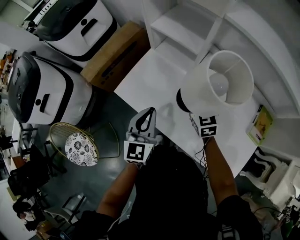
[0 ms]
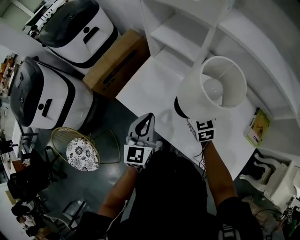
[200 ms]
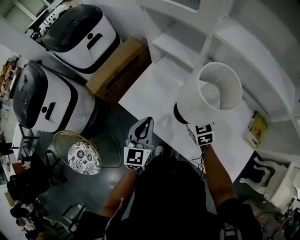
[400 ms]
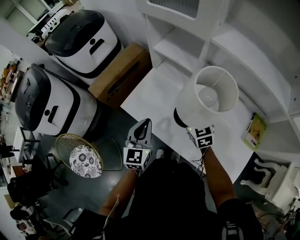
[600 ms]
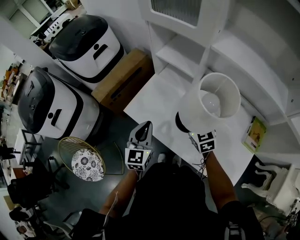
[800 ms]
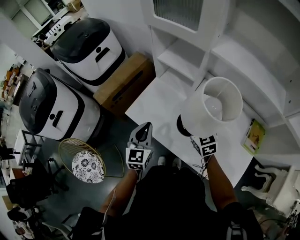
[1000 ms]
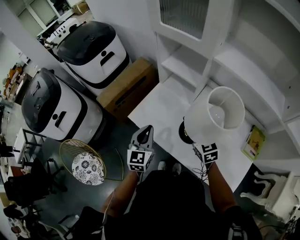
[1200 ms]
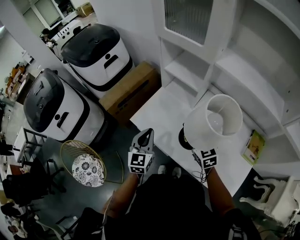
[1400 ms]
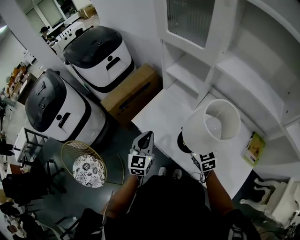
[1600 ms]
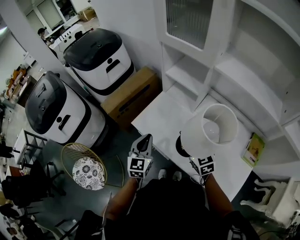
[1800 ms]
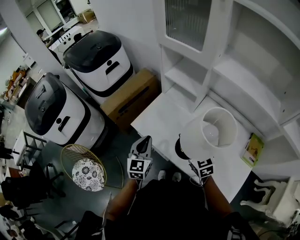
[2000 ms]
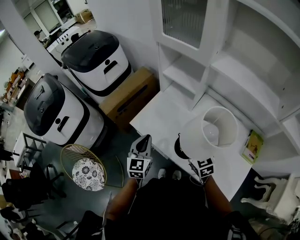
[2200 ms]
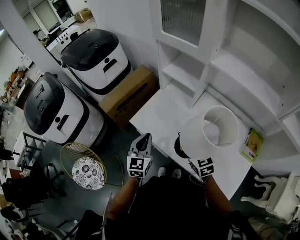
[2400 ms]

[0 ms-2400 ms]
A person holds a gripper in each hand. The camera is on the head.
0 ms to 1200 ms: The left gripper is displaced to the left by some 5 cm, while the right gripper heads upward and backward, covering roughly 10 cm.
1200 ms to 2400 ms: The right gripper travels backward by about 5 cm.

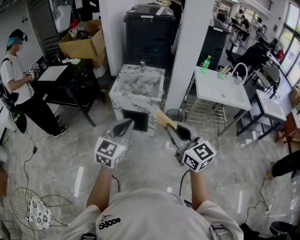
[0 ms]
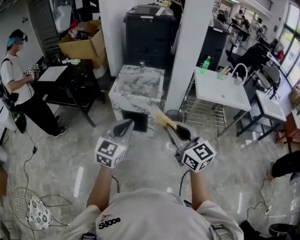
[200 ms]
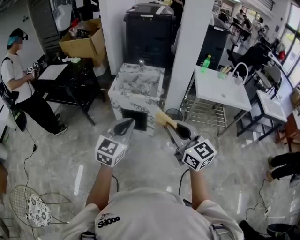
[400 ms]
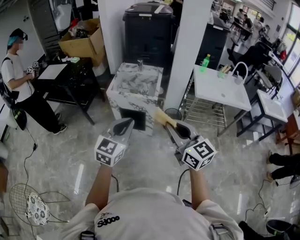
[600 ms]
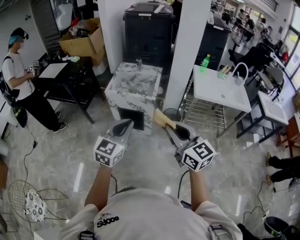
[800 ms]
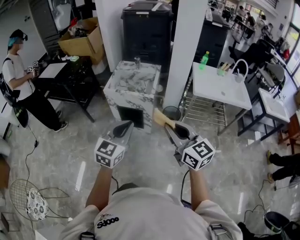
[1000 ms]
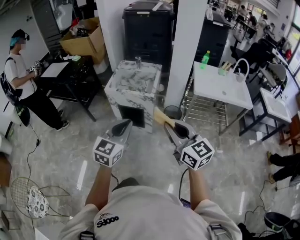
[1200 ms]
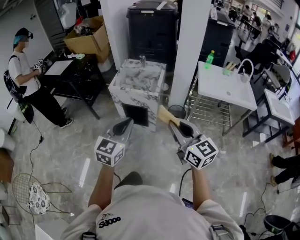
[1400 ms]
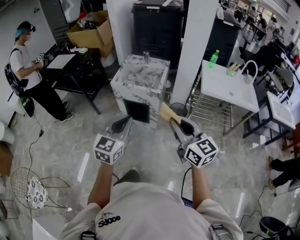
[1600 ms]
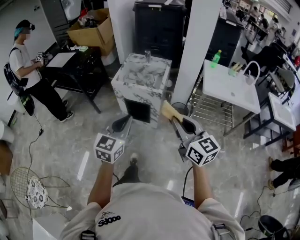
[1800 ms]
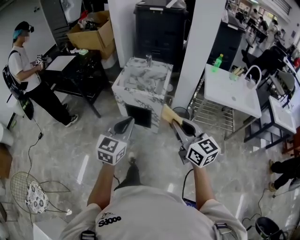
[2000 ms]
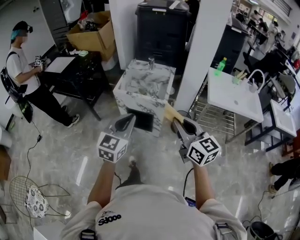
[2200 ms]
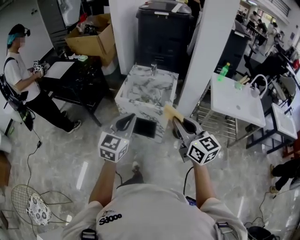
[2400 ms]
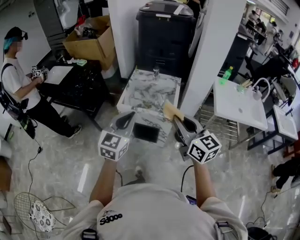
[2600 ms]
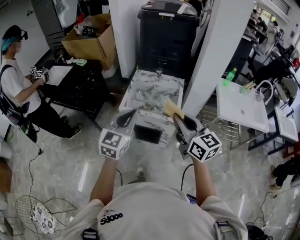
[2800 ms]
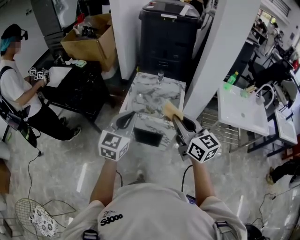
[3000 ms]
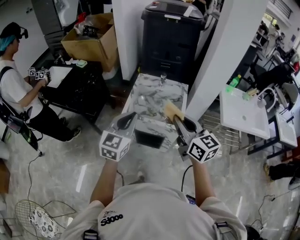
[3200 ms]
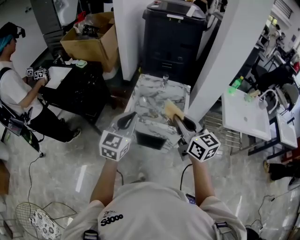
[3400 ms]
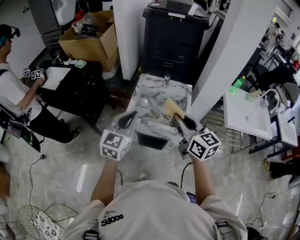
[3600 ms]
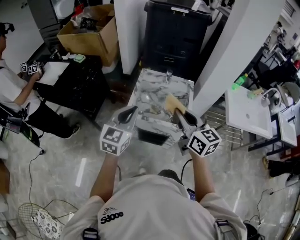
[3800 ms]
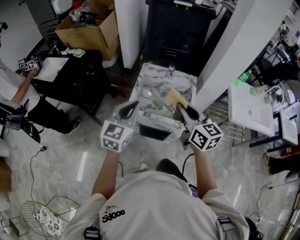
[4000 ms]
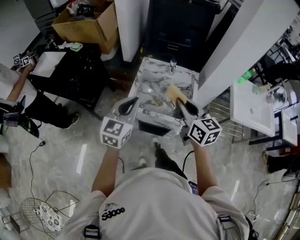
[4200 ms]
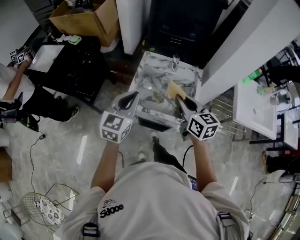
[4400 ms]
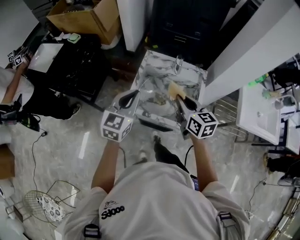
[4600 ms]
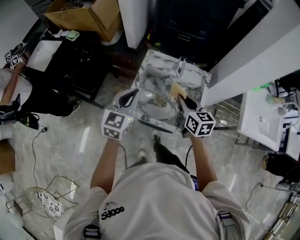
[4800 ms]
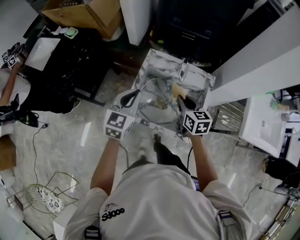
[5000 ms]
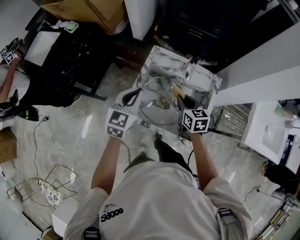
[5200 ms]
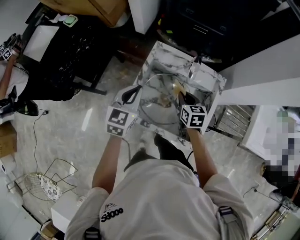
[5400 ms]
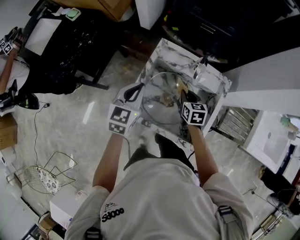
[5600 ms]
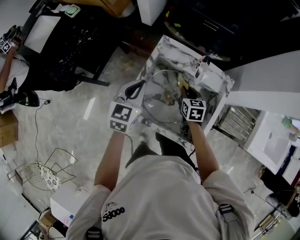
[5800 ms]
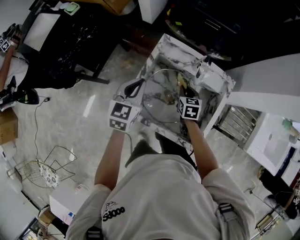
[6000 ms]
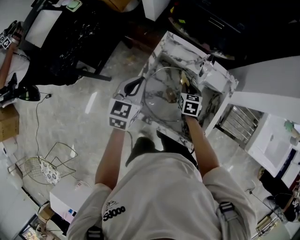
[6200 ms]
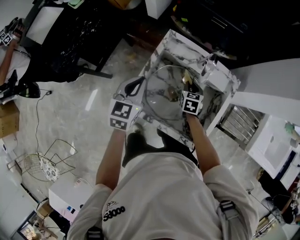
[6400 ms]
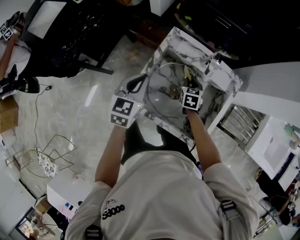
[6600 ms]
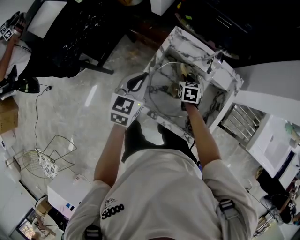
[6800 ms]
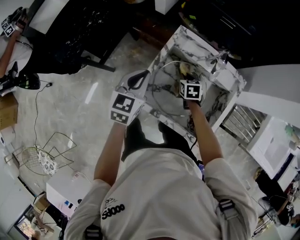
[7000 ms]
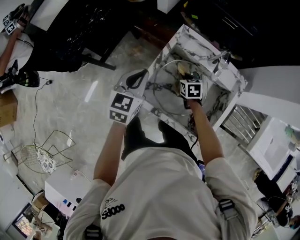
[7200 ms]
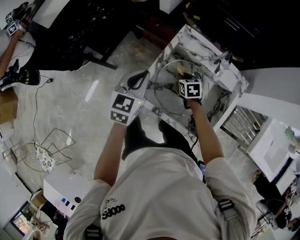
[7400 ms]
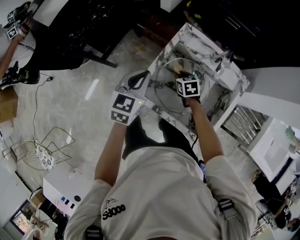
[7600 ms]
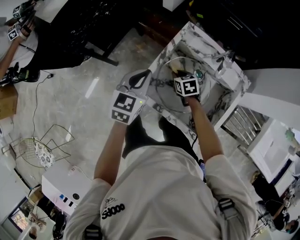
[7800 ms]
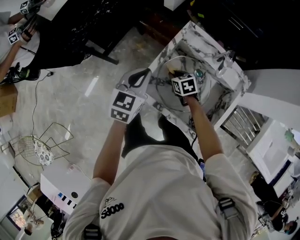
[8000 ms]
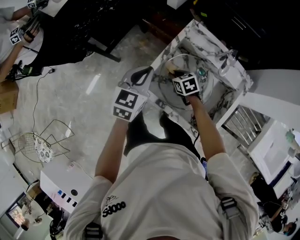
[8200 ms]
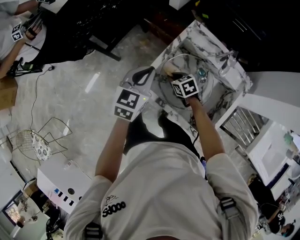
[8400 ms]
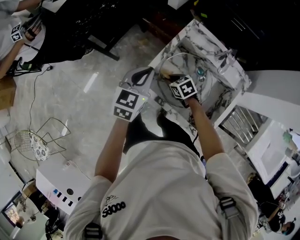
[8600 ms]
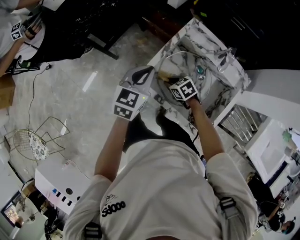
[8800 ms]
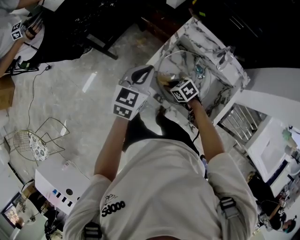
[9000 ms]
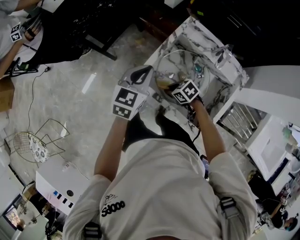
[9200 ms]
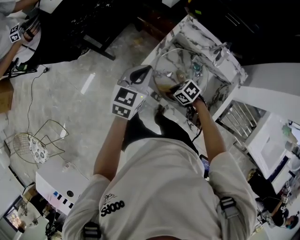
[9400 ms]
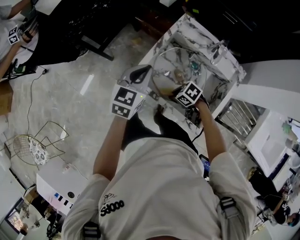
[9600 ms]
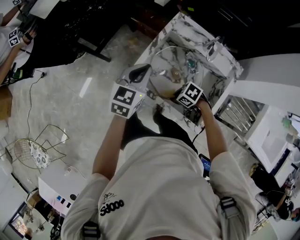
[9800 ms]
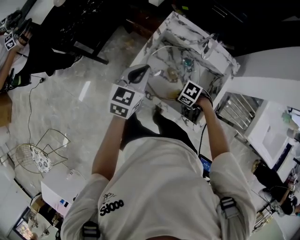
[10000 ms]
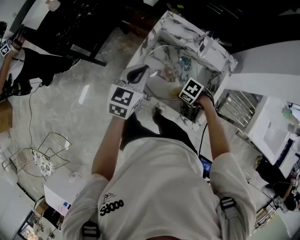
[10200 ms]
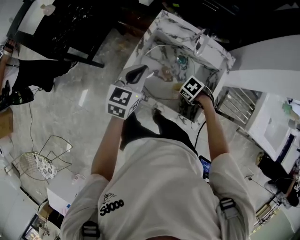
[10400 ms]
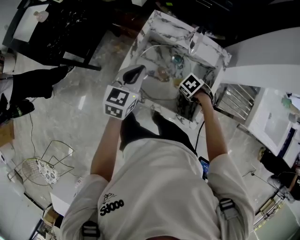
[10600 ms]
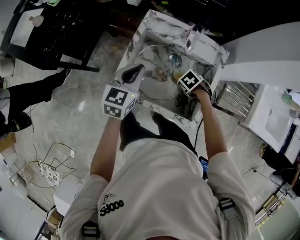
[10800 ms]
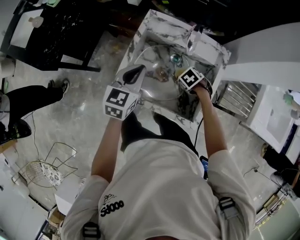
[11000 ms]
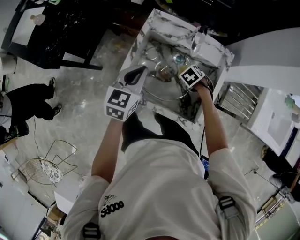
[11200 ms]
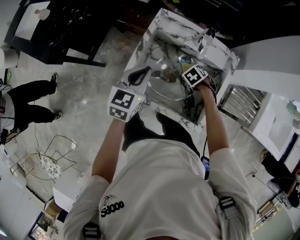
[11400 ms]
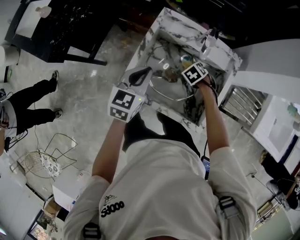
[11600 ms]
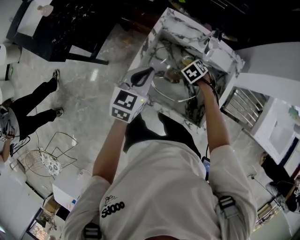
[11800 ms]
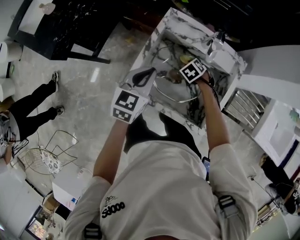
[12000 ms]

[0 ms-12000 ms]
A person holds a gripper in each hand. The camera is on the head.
0 ms to 1600 ms: Both grippers move to the right, roughly 10 cm.
1600 ms to 3000 ms: Both grippers move forward, approximately 30 cm.
3000 ms to 4400 ms: Both grippers move forward and downward, about 20 cm.
4400 ms to 6000 ms: The left gripper heads forward and downward, covering roughly 25 cm, and rotates approximately 20 degrees. The right gripper goes about 40 cm downward and forward, and tips its fingers downward by some 30 degrees.
6000 ms to 7600 ms: The right gripper goes some 10 cm to the left, and rotates about 20 degrees. Meanwhile the left gripper moves about 5 cm.
7600 ms to 9000 ms: The right gripper moves some 15 cm, and swivels approximately 30 degrees.
9000 ms to 10400 ms: The left gripper changes place by roughly 5 cm. The right gripper ends up some 15 cm from where it was, and rotates roughly 30 degrees.
10400 ms to 12000 ms: The right gripper changes place by some 15 cm, and turns by roughly 20 degrees.

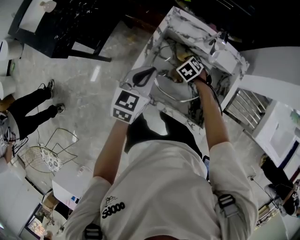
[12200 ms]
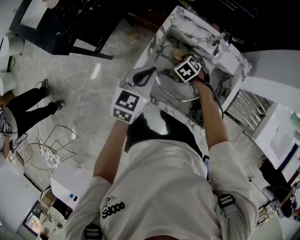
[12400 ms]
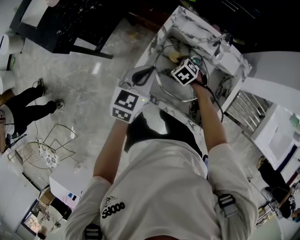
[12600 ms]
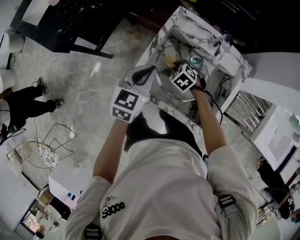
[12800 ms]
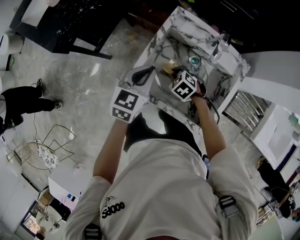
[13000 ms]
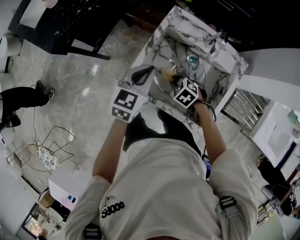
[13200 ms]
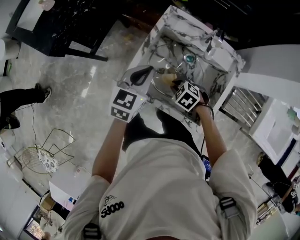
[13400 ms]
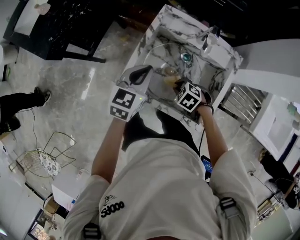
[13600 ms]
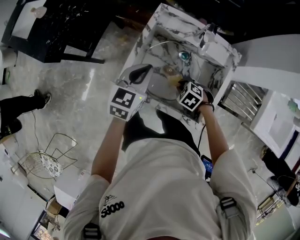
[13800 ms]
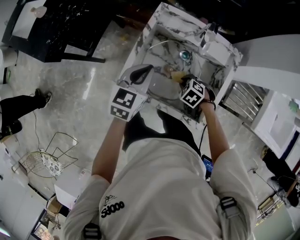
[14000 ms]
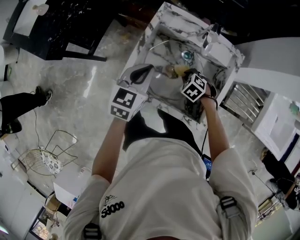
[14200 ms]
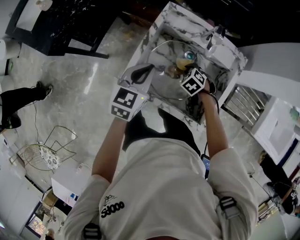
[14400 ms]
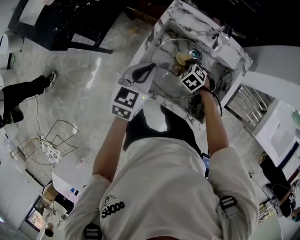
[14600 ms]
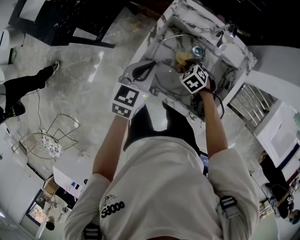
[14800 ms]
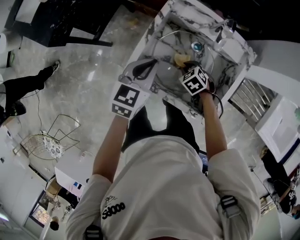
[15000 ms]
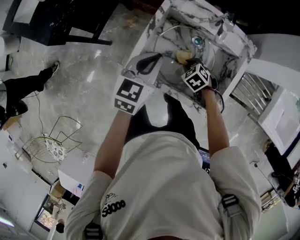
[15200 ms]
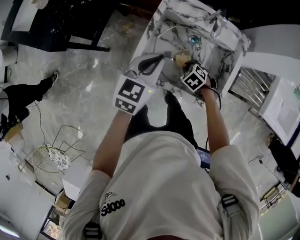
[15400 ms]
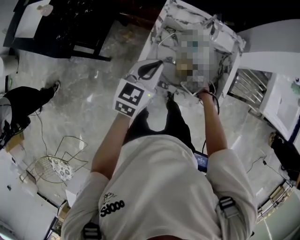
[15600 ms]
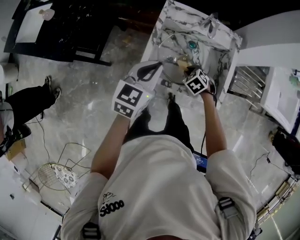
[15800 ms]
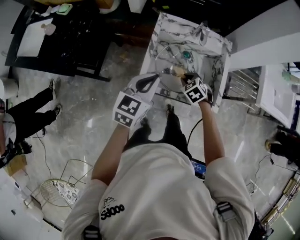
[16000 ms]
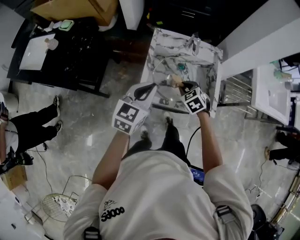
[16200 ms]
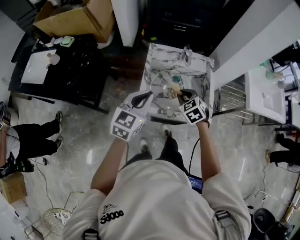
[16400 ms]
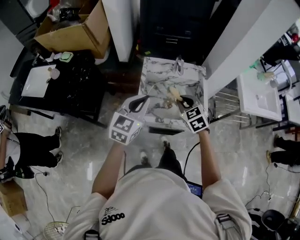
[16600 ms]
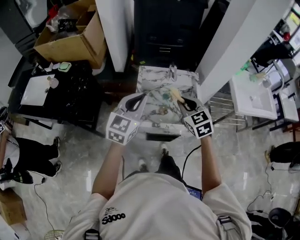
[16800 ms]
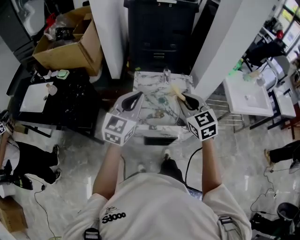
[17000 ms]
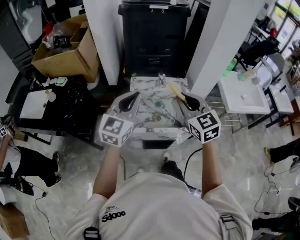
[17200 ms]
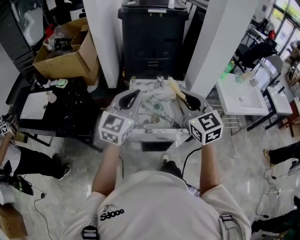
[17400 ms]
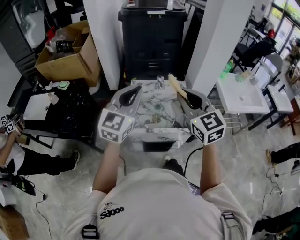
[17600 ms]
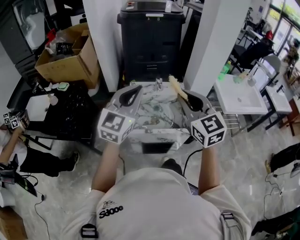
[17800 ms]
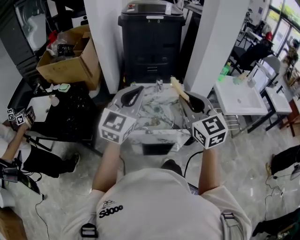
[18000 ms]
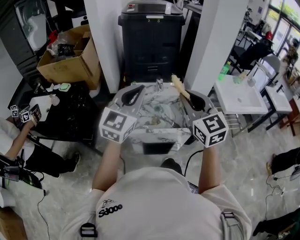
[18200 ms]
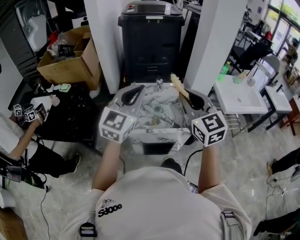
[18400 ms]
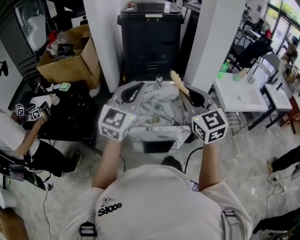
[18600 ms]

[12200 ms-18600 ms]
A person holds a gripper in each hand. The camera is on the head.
12200 ms to 13800 ms: The right gripper shifts by about 15 cm.
15400 ms to 17000 ms: The right gripper is displaced upward by approximately 40 cm, and tips its fingers upward by roughly 50 degrees, while the left gripper moves upward, roughly 20 cm, and turns by approximately 30 degrees.
17000 ms to 18600 ms: Both grippers move upward and backward, roughly 15 cm.

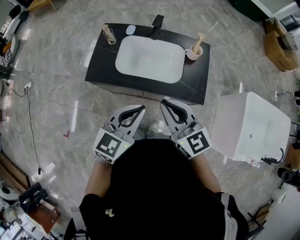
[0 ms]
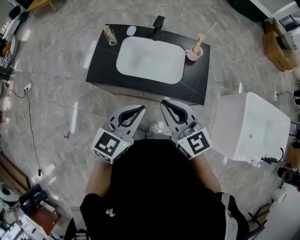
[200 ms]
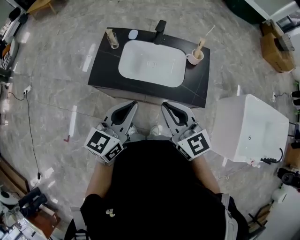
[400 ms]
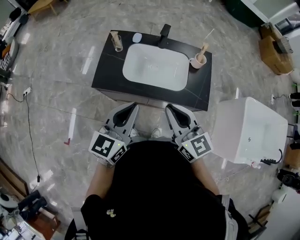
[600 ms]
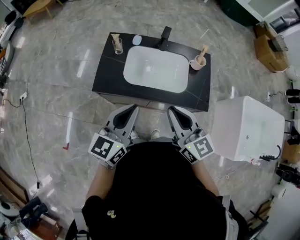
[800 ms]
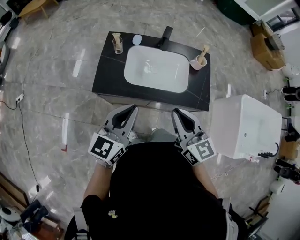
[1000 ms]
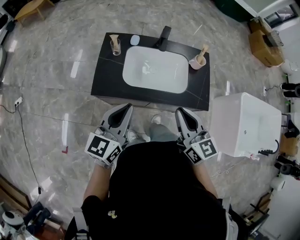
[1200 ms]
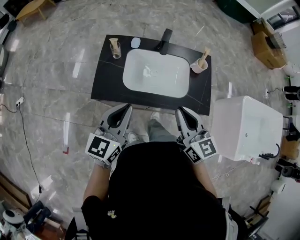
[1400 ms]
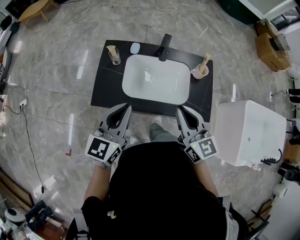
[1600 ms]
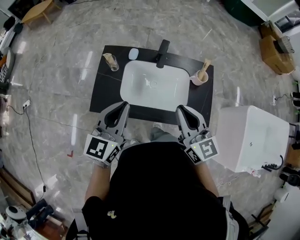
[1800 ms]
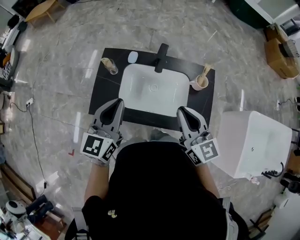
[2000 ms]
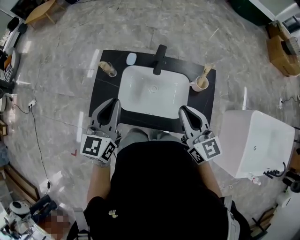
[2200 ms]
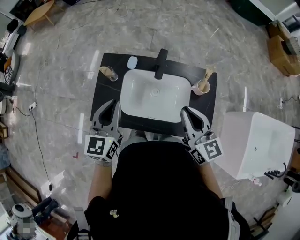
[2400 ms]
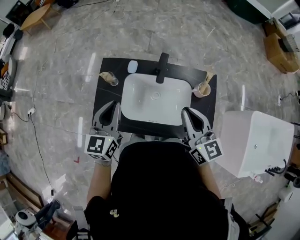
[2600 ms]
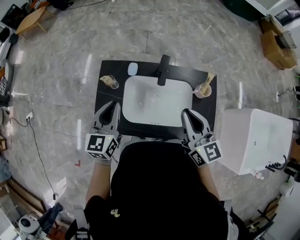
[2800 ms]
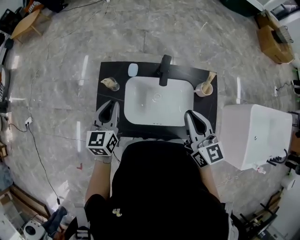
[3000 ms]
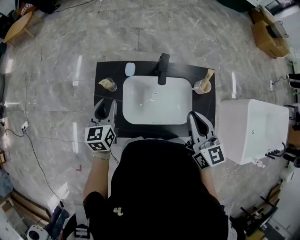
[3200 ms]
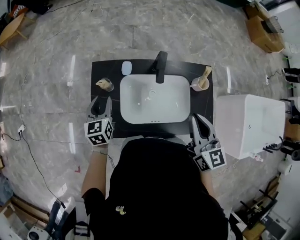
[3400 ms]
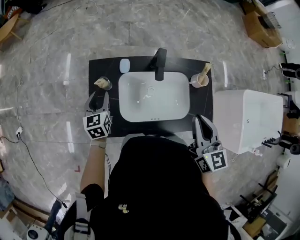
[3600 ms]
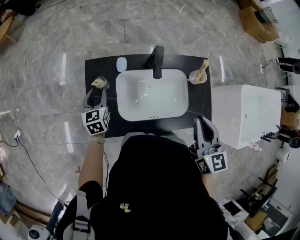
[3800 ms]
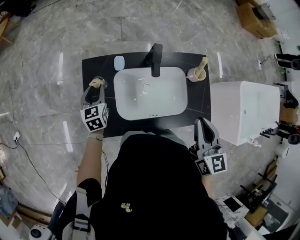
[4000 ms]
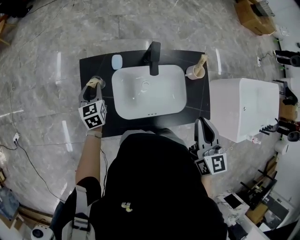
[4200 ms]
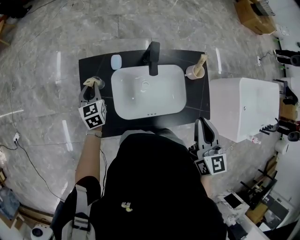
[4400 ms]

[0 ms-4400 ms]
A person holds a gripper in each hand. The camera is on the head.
0 ms to 1400 ms: The right gripper moves forward, about 5 cm. The left gripper moves to the left and forward, some 20 cm.
1400 ms to 3000 ms: Both grippers travel together forward, roughly 20 cm.
3000 ms to 4400 ms: The right gripper ends up roughly 5 cm from where it was, and turns by about 20 degrees, while the left gripper shifts approximately 20 cm downward, forward and to the left, and opens and closes again.
